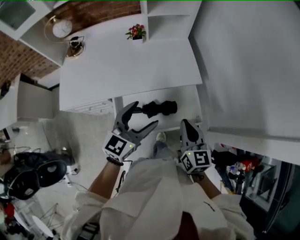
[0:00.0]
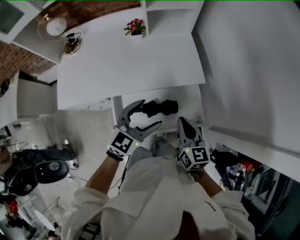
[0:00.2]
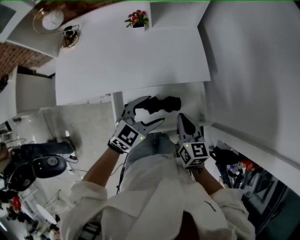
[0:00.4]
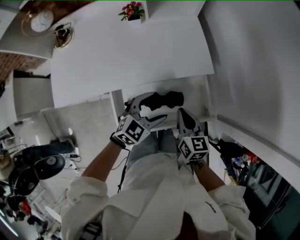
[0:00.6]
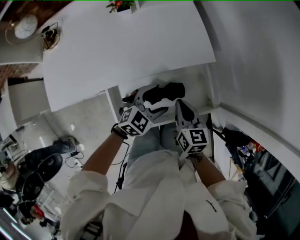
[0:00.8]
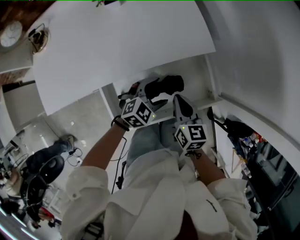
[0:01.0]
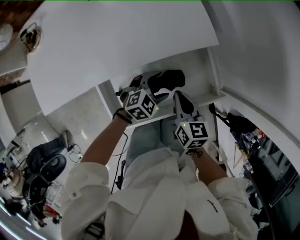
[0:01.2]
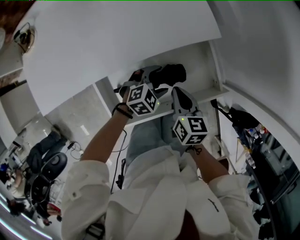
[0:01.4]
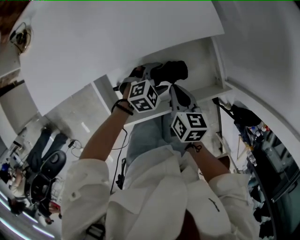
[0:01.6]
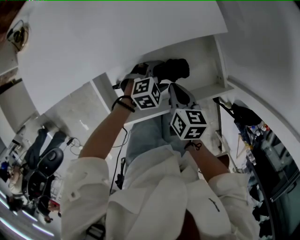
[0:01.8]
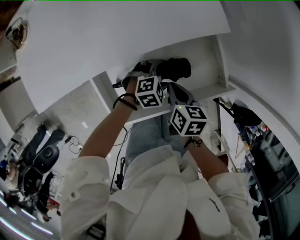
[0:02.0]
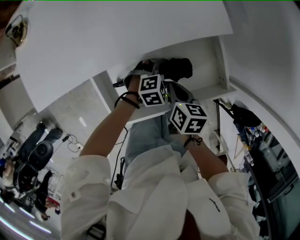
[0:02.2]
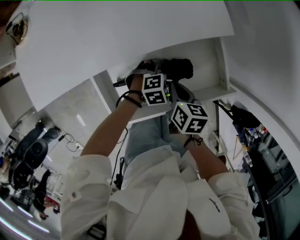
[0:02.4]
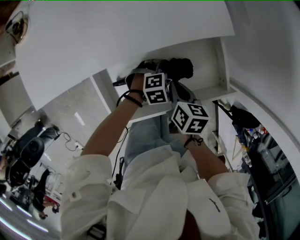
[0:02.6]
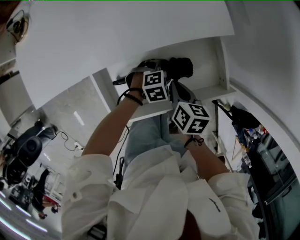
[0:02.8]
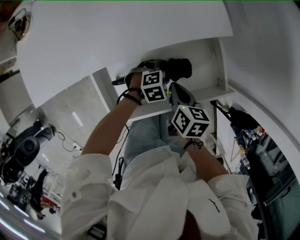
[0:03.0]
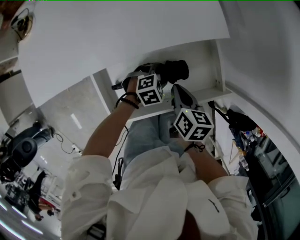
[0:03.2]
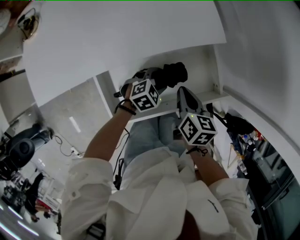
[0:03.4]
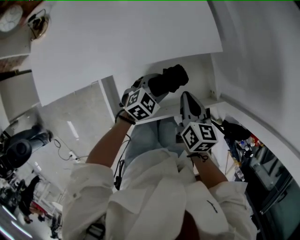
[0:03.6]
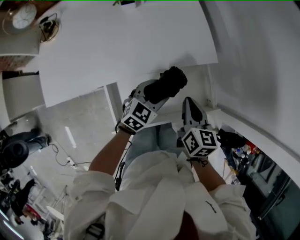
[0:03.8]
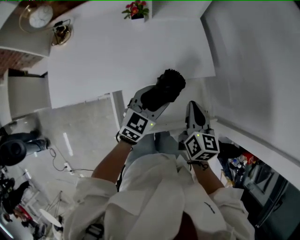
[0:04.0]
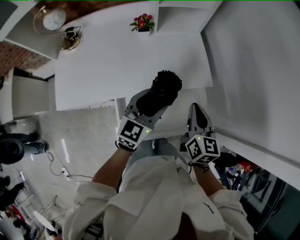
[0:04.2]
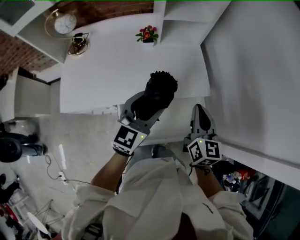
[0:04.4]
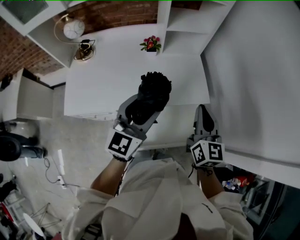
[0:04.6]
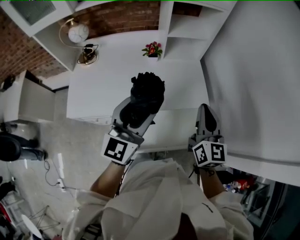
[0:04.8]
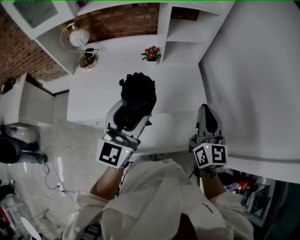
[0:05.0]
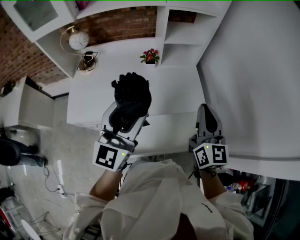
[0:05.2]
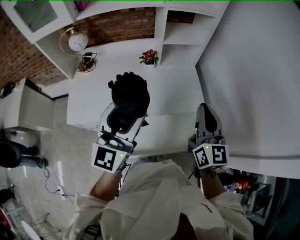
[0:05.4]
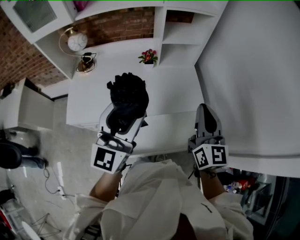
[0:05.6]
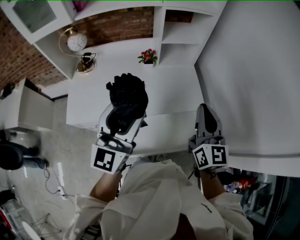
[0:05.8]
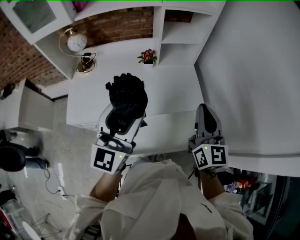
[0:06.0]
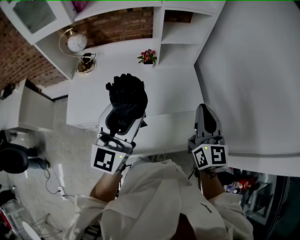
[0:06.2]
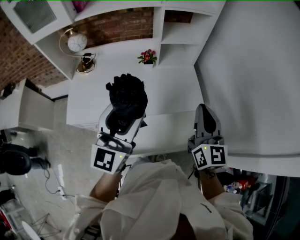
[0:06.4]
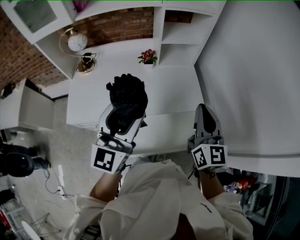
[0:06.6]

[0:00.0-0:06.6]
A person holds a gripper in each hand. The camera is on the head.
0:00.0 to 0:01.6: Both grippers move downward, some 30 cm. The left gripper tips its fingers downward by approximately 40 degrees, while the right gripper swivels about 30 degrees.
0:01.6 to 0:03.2: There are only small adjustments of the grippers.
0:03.2 to 0:05.0: Both grippers move upward, some 50 cm. The left gripper tips its fingers upward by approximately 70 degrees, while the right gripper tilts its fingers about 50 degrees upward.
0:05.0 to 0:06.6: There are only small adjustments of the grippers.

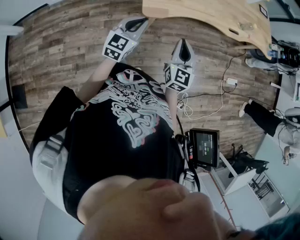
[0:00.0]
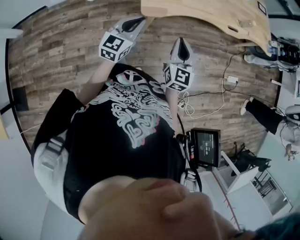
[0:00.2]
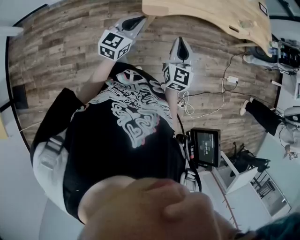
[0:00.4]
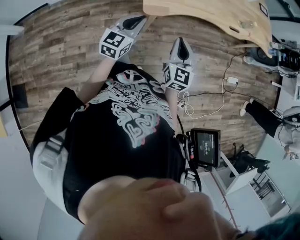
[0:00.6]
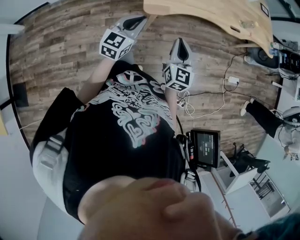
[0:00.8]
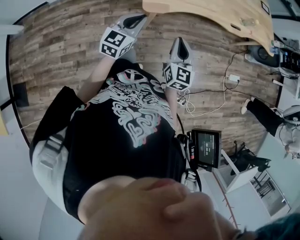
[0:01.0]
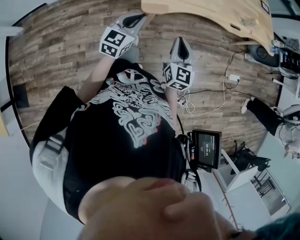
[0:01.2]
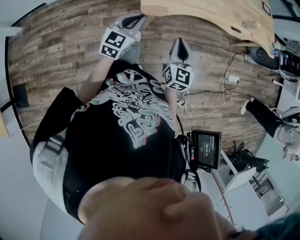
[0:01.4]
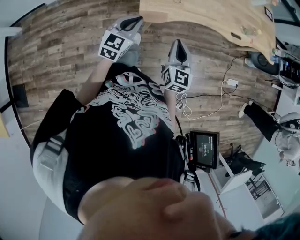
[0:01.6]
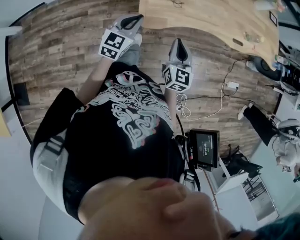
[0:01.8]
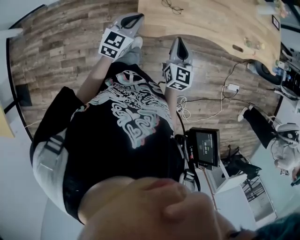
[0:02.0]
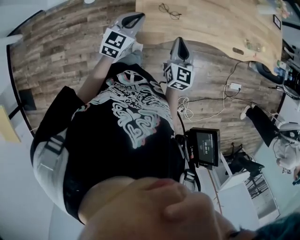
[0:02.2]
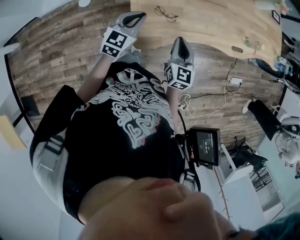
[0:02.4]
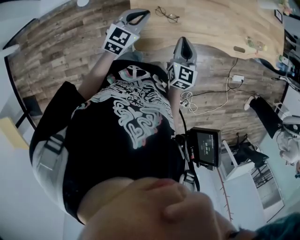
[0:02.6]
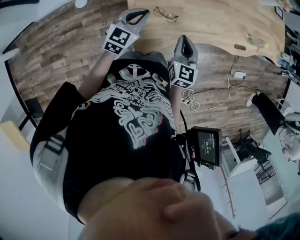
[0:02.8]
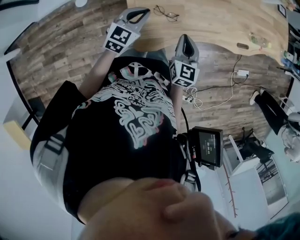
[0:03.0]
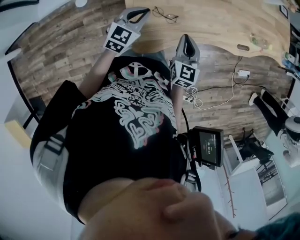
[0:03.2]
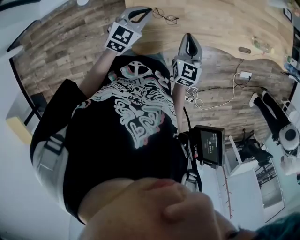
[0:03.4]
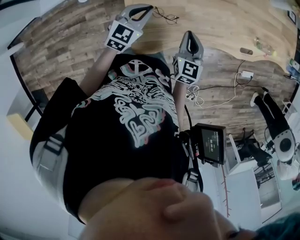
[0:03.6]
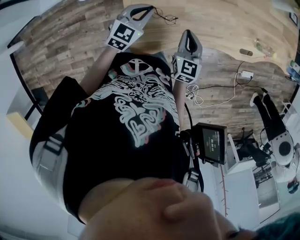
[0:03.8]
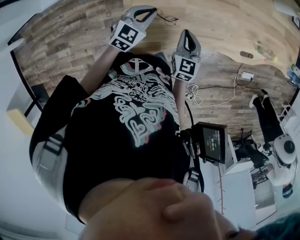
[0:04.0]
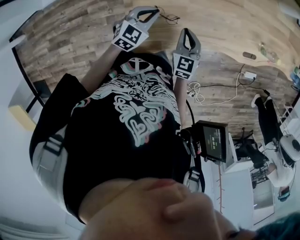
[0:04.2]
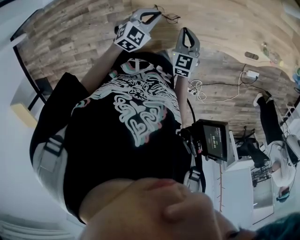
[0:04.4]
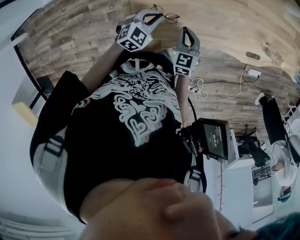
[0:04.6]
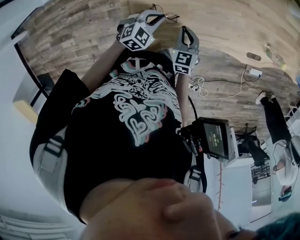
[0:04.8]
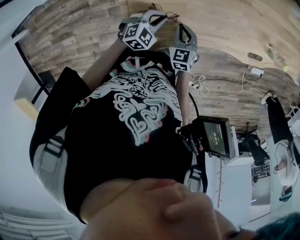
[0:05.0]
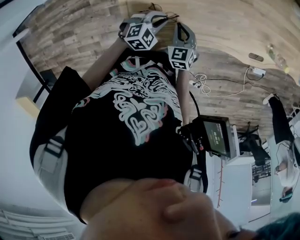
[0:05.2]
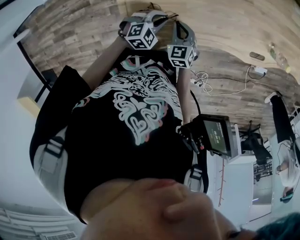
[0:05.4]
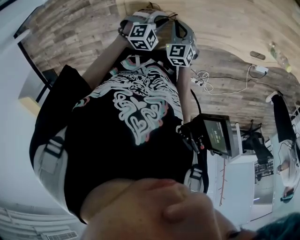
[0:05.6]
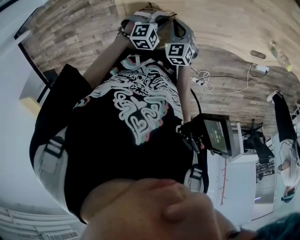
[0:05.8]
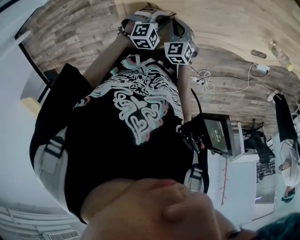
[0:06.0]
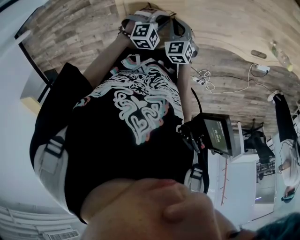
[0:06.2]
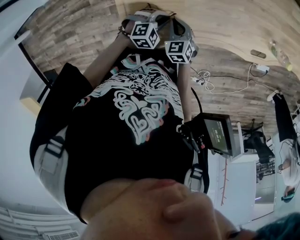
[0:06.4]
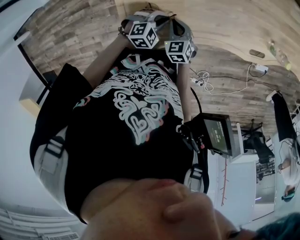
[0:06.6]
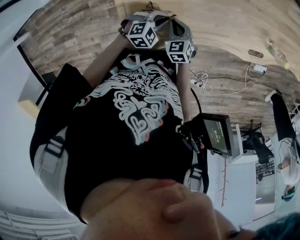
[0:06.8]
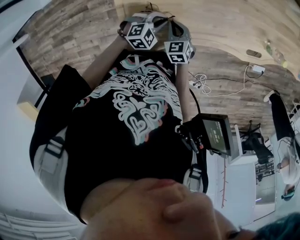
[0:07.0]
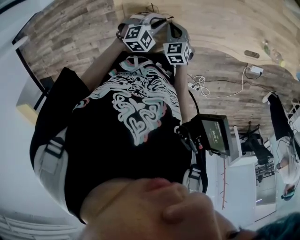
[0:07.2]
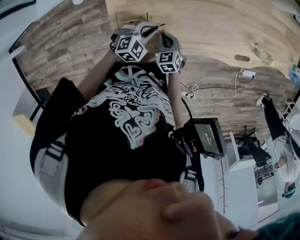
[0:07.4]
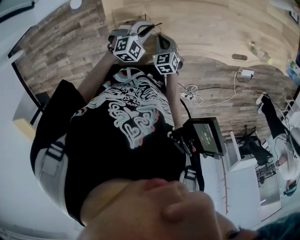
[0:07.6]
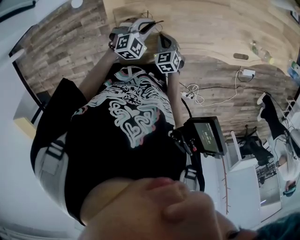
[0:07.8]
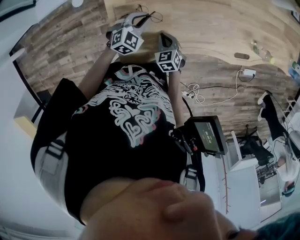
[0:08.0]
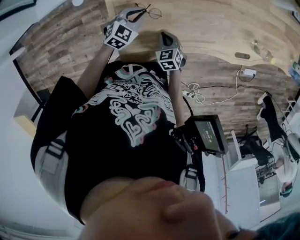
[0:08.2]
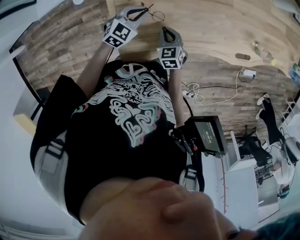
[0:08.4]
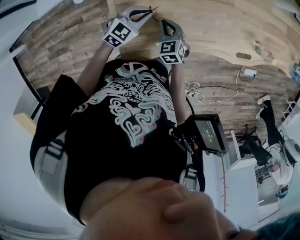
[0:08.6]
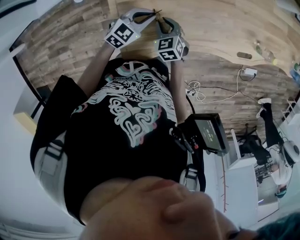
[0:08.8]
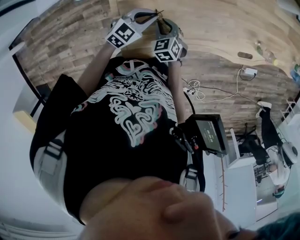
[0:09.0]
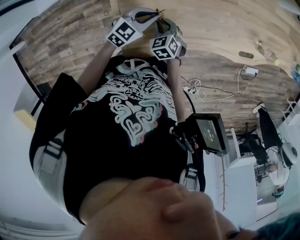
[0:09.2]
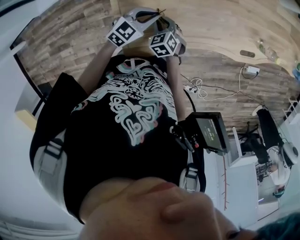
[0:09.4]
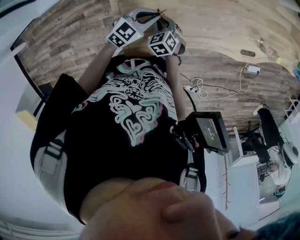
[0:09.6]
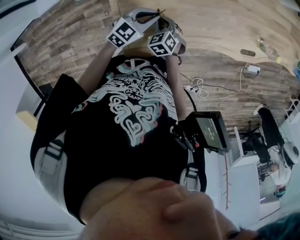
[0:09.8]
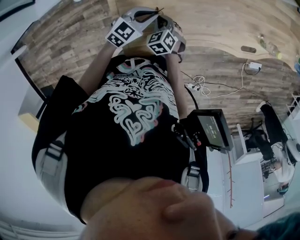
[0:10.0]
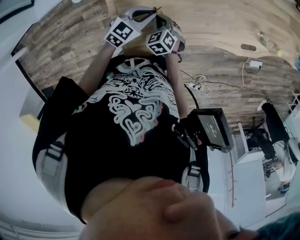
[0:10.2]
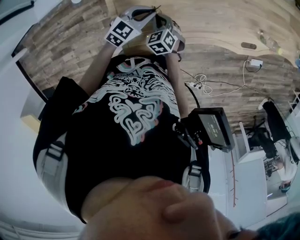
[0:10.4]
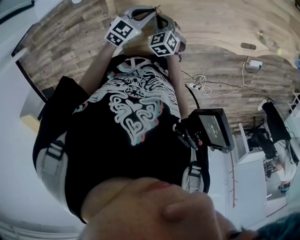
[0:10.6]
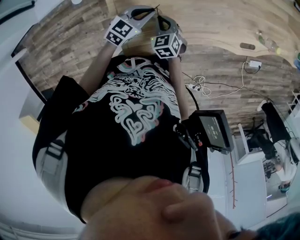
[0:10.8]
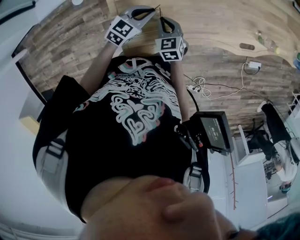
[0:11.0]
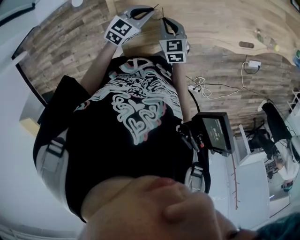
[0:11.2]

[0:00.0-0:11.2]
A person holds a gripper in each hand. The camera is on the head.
0:00.0 to 0:01.6: Both grippers travel together forward, some 5 cm.
0:01.6 to 0:03.2: Both grippers move forward, approximately 30 cm.
0:03.2 to 0:04.8: The right gripper shifts some 15 cm downward and forward, and swivels some 20 degrees, while the left gripper is displaced downward and to the right by about 15 cm, and swivels some 20 degrees.
0:04.8 to 0:06.4: The right gripper shifts approximately 5 cm downward. The left gripper is displaced downward and to the right by roughly 10 cm, and changes its angle by roughly 20 degrees.
0:06.4 to 0:08.0: The left gripper heads forward, upward and to the left, covering approximately 10 cm, and changes its angle by about 20 degrees.
0:08.0 to 0:09.6: The left gripper turns by some 20 degrees; the right gripper moves some 5 cm.
0:09.6 to 0:11.2: The right gripper is displaced upward by about 10 cm, and turns by some 30 degrees.

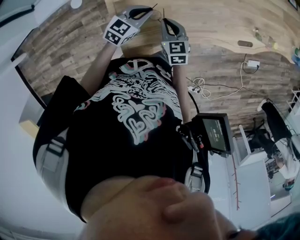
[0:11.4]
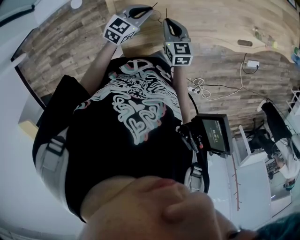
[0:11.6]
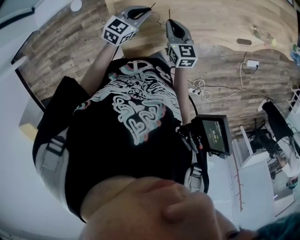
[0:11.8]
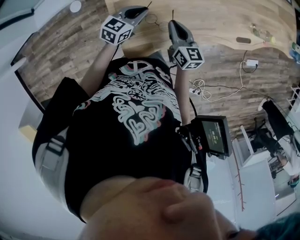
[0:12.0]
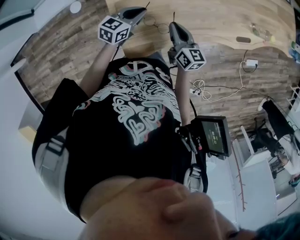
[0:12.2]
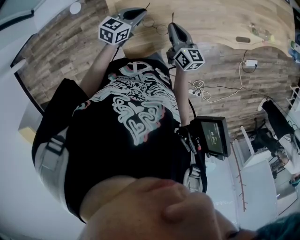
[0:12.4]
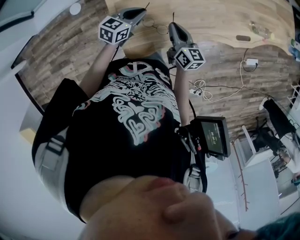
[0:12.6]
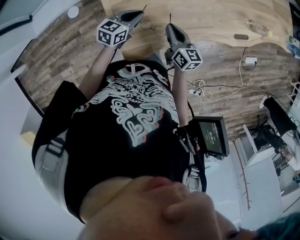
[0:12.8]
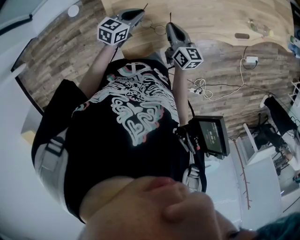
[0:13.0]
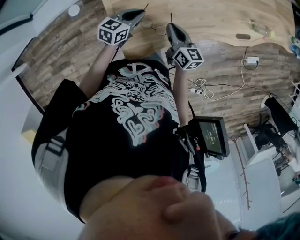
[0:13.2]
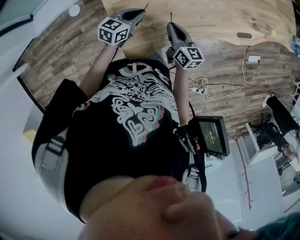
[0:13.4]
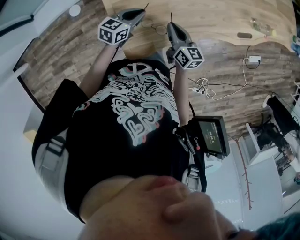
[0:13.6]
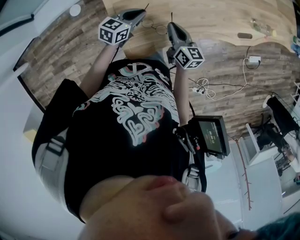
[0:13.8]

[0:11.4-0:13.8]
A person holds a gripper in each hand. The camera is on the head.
0:11.4 to 0:12.6: The right gripper goes some 5 cm to the right, and changes its angle by some 30 degrees.
0:12.6 to 0:13.8: The grippers move only a little.

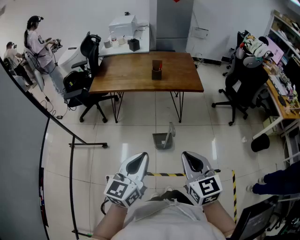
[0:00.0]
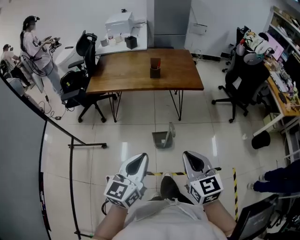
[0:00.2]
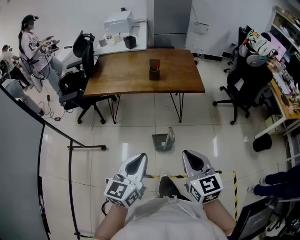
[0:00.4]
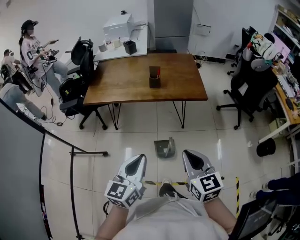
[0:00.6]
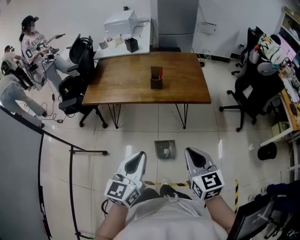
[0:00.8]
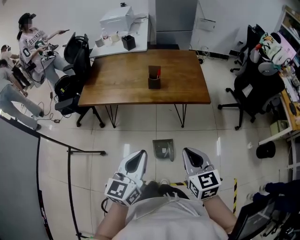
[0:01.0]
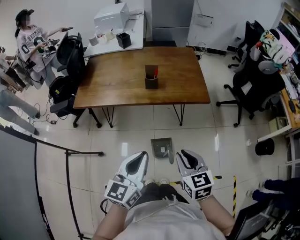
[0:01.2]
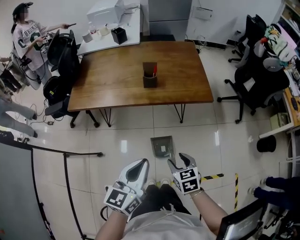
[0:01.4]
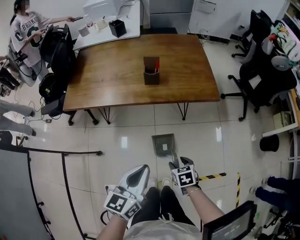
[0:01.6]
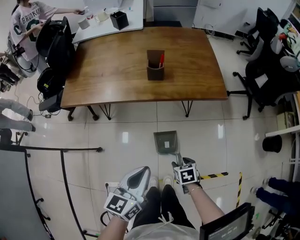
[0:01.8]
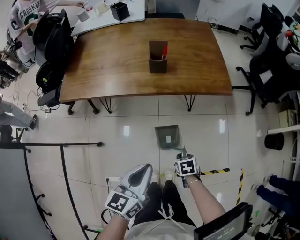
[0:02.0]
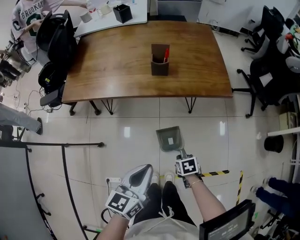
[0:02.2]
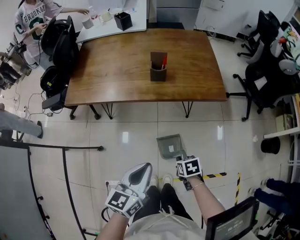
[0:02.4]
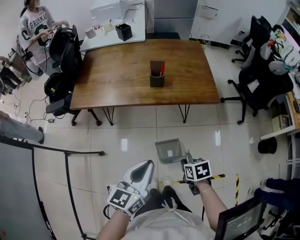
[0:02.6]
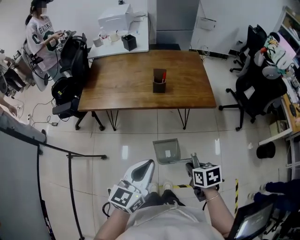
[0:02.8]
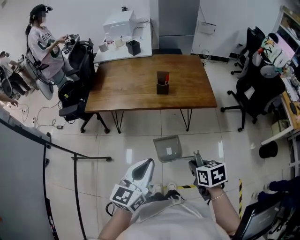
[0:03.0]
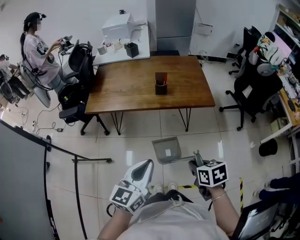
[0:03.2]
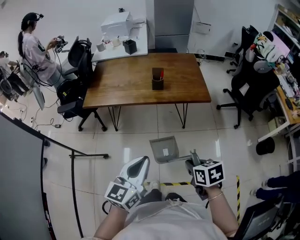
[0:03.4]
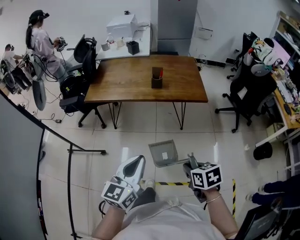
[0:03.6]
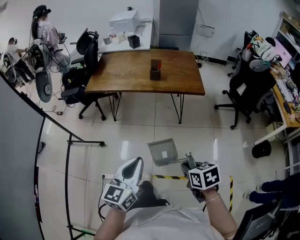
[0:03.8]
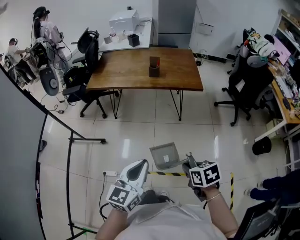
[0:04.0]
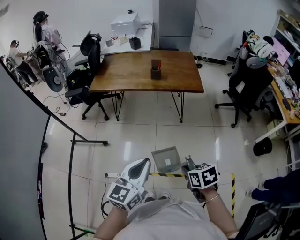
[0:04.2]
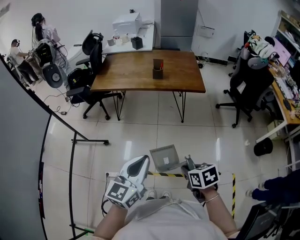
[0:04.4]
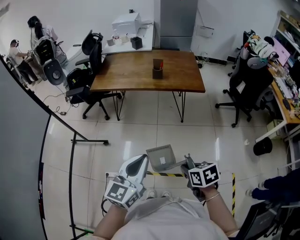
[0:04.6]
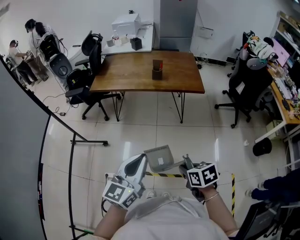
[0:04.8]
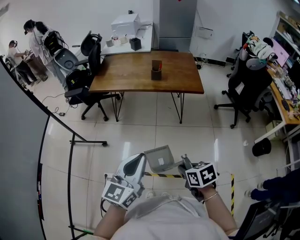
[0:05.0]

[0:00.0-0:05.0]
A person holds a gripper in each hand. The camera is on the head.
0:00.0 to 0:01.6: The right gripper goes about 40 cm downward and forward, angles its fingers downward, by approximately 40 degrees, and opens up. Meanwhile the left gripper heads forward and downward, covering about 30 cm.
0:01.6 to 0:03.4: The left gripper moves backward and upward, roughly 15 cm, while the right gripper is displaced upward and backward by about 25 cm, and closes its fingers.
0:03.4 to 0:05.0: Both grippers move backward, some 15 cm.
